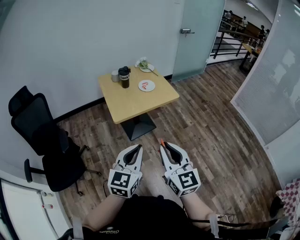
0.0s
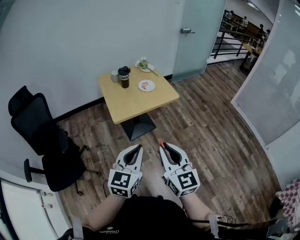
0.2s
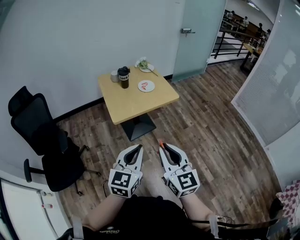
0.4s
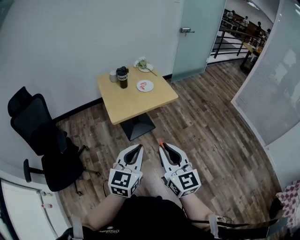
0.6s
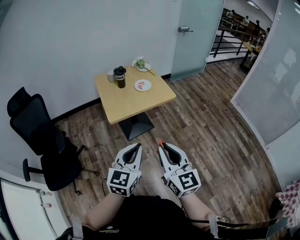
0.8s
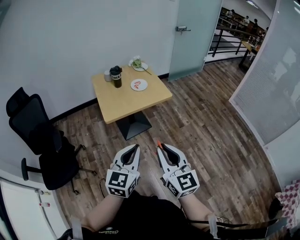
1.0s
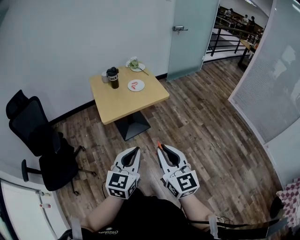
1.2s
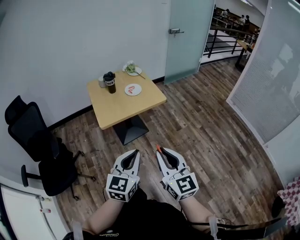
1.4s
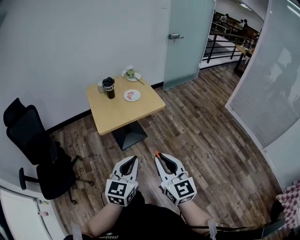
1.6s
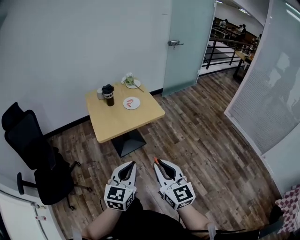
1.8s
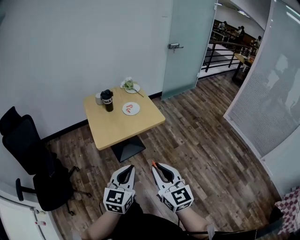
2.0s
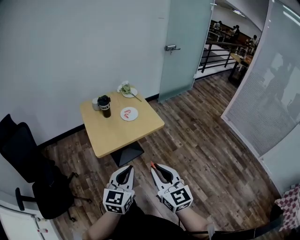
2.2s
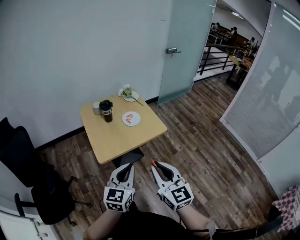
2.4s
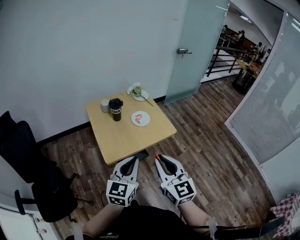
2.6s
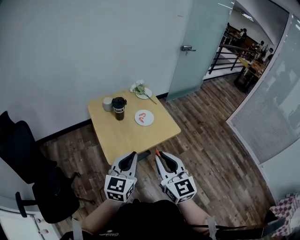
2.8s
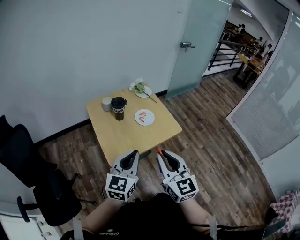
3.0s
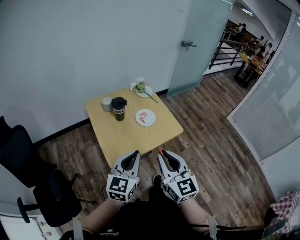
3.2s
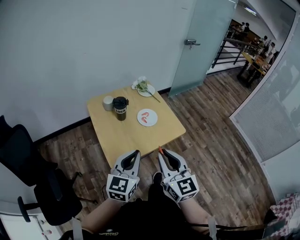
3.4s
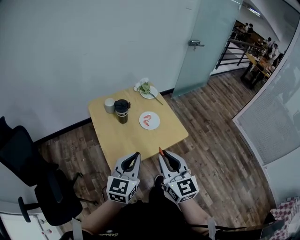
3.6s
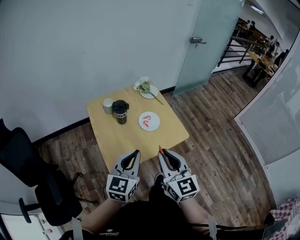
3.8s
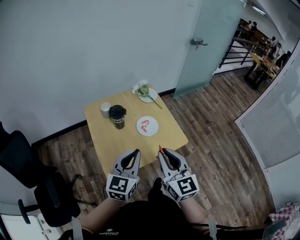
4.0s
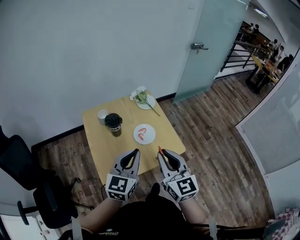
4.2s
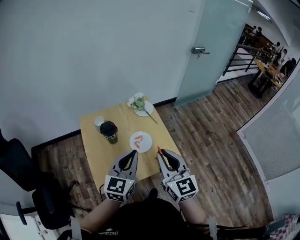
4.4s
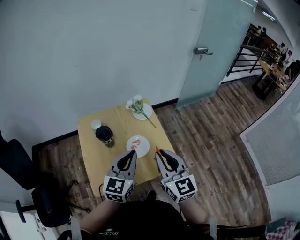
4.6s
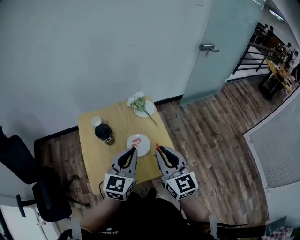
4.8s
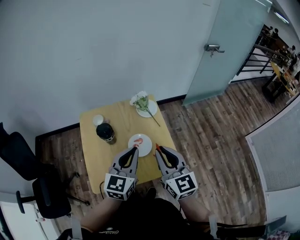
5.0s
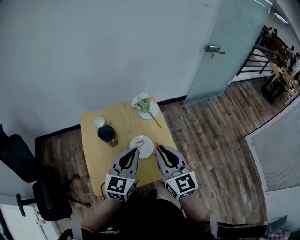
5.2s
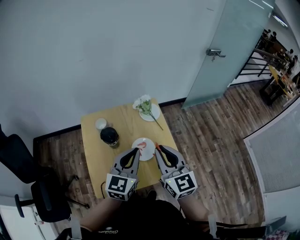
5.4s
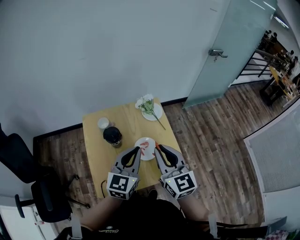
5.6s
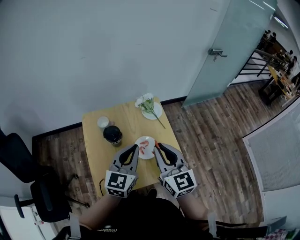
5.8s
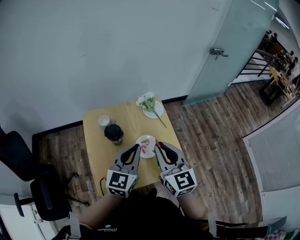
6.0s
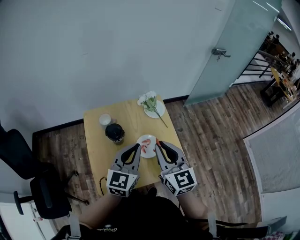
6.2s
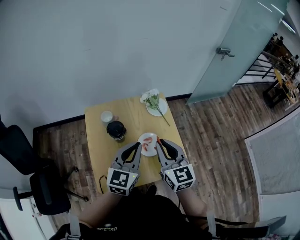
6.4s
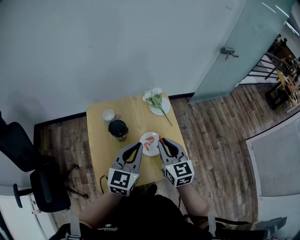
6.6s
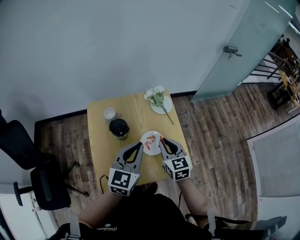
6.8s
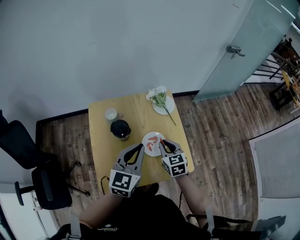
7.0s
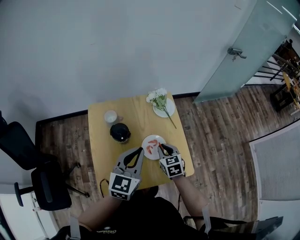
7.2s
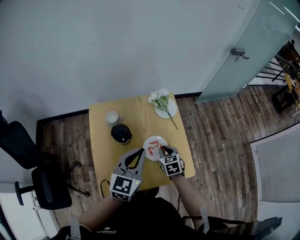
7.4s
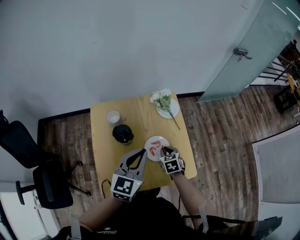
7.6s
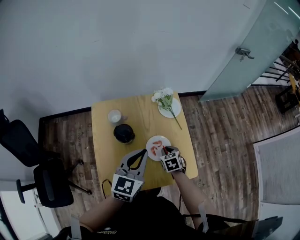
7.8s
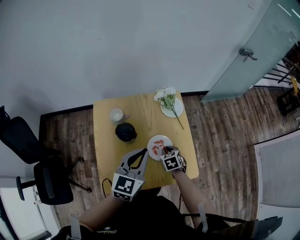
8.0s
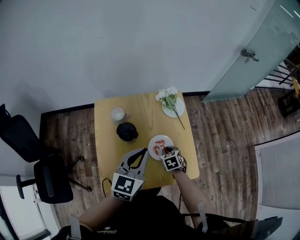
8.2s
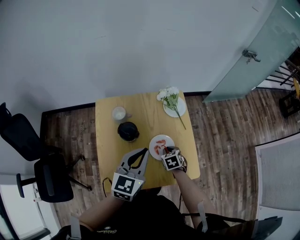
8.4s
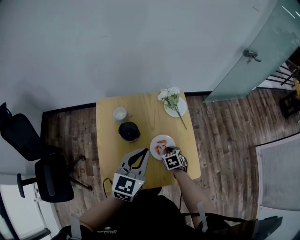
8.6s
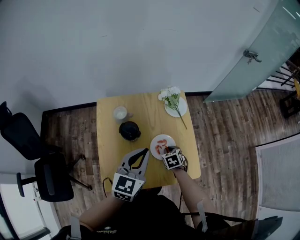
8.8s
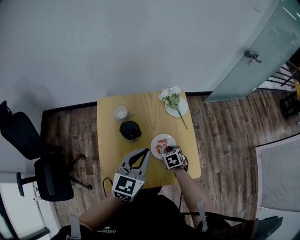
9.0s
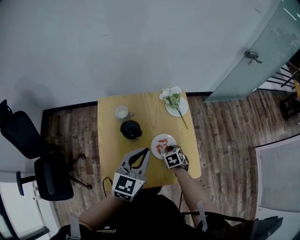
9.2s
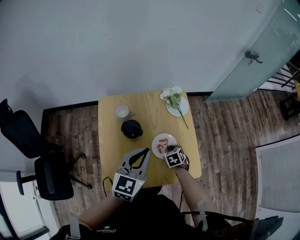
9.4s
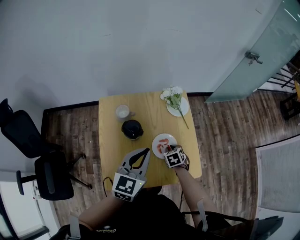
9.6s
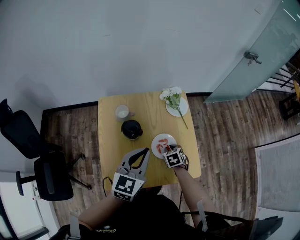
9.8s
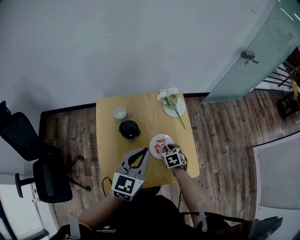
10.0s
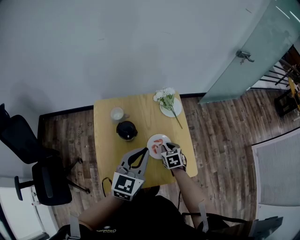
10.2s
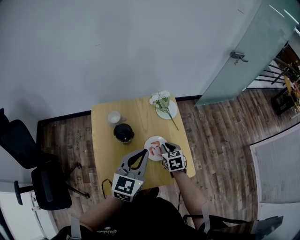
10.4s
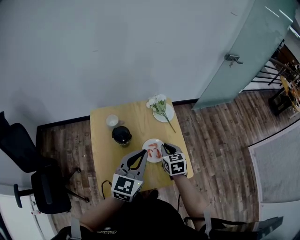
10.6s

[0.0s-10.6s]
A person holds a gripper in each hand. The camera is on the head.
0.0s to 1.6s: The two grippers go some 10 cm to the right.
1.6s to 3.0s: Both grippers travel together forward and to the left, some 30 cm.
3.0s to 4.6s: The grippers both shift forward by approximately 25 cm.
4.6s to 6.0s: The left gripper is displaced forward by approximately 5 cm. The right gripper travels forward and to the left by roughly 10 cm.
6.0s to 7.6s: The right gripper goes about 30 cm downward, and angles its fingers downward, by some 50 degrees. Meanwhile the left gripper changes place by roughly 5 cm.
7.6s to 9.0s: The right gripper heads downward, covering about 5 cm.
9.0s to 10.6s: The right gripper travels upward by some 15 cm, and swivels roughly 30 degrees.

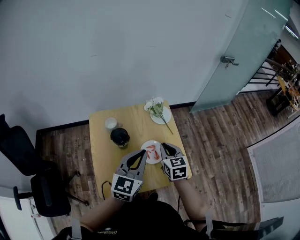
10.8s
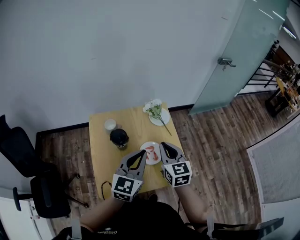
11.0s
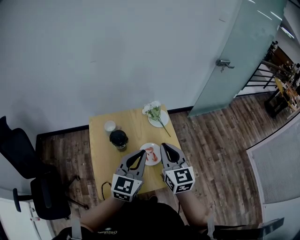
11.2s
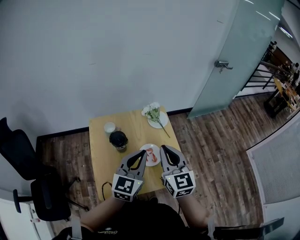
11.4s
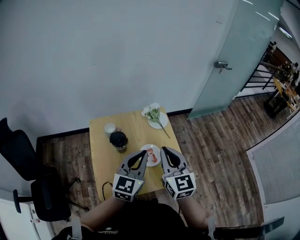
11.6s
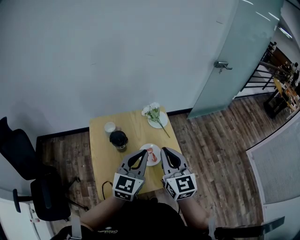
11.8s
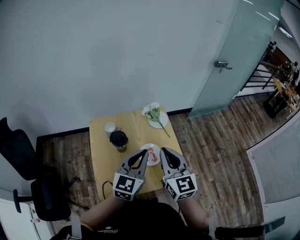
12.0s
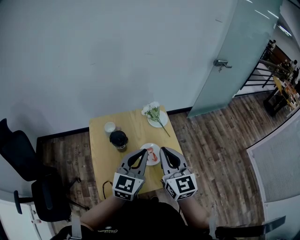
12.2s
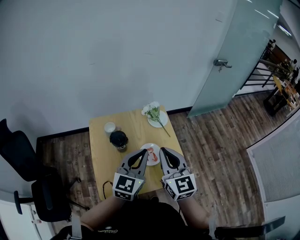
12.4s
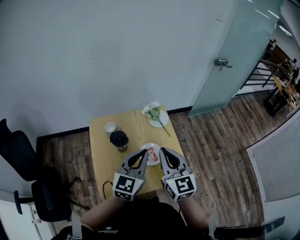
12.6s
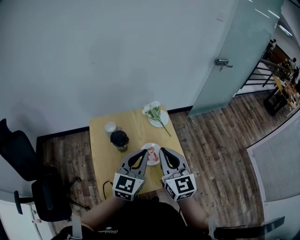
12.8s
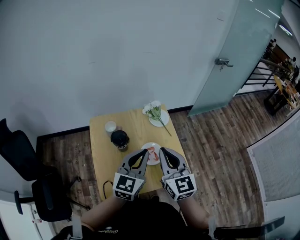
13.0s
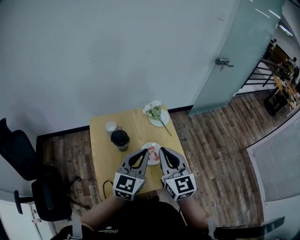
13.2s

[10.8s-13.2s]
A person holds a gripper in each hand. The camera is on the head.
10.8s to 12.0s: The right gripper moves upward and backward, some 15 cm, and swivels about 30 degrees.
12.0s to 13.2s: The grippers stay close to where they were, moving slightly.

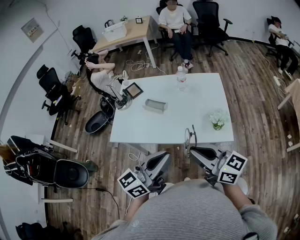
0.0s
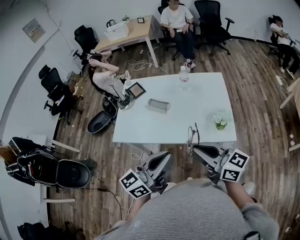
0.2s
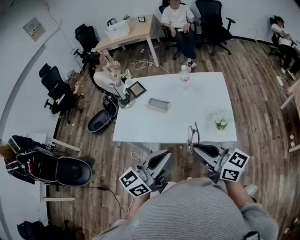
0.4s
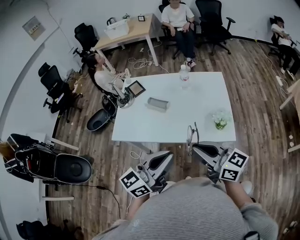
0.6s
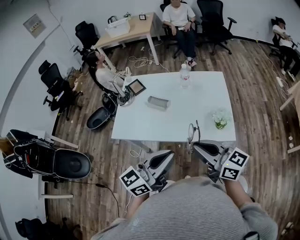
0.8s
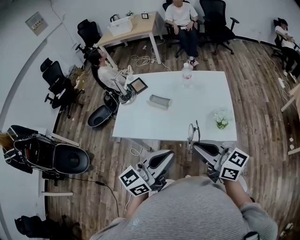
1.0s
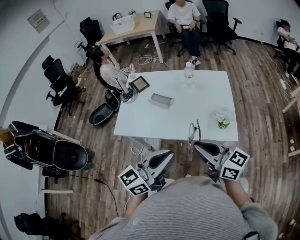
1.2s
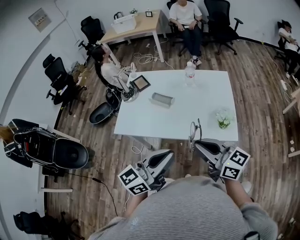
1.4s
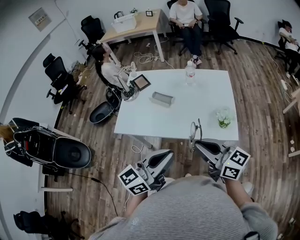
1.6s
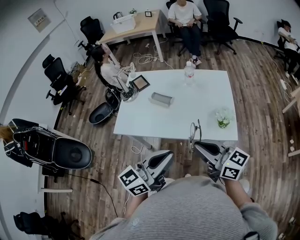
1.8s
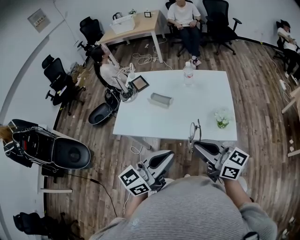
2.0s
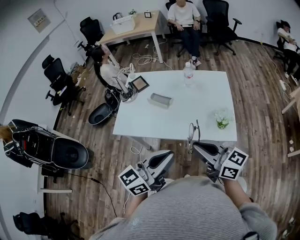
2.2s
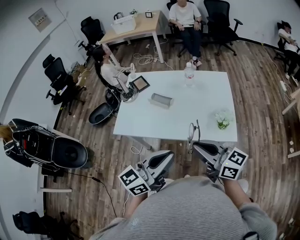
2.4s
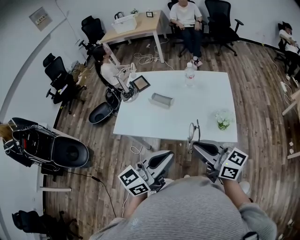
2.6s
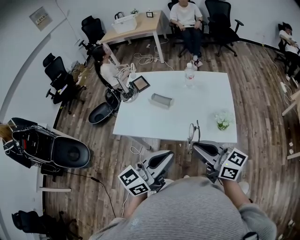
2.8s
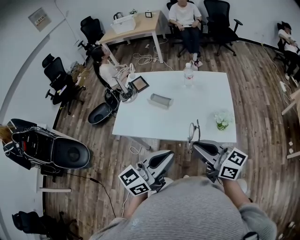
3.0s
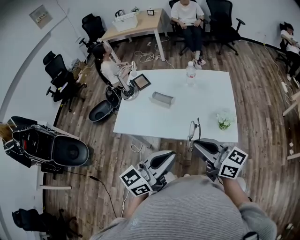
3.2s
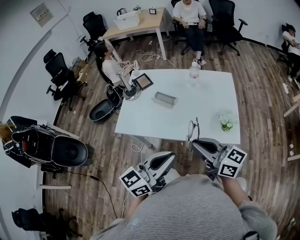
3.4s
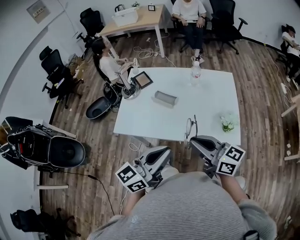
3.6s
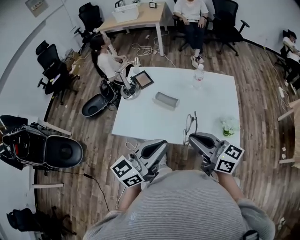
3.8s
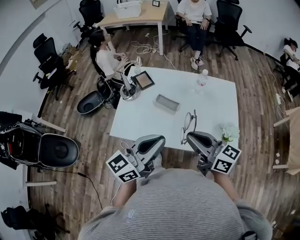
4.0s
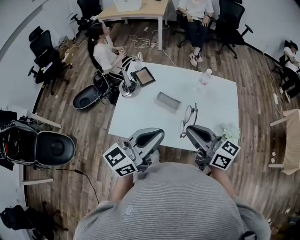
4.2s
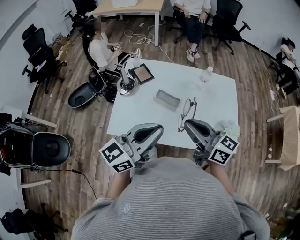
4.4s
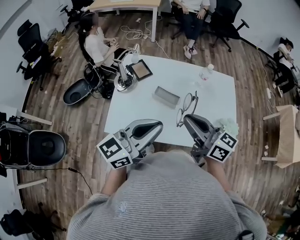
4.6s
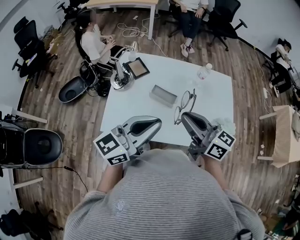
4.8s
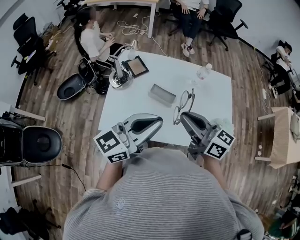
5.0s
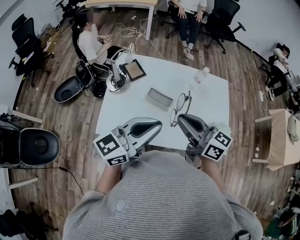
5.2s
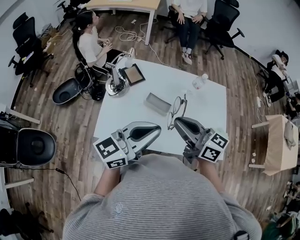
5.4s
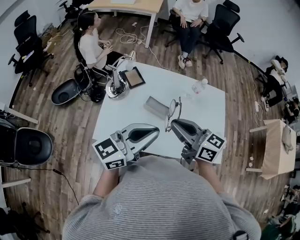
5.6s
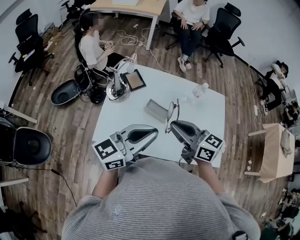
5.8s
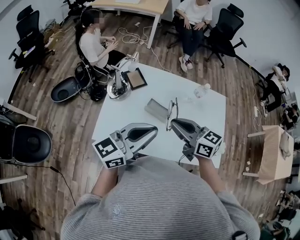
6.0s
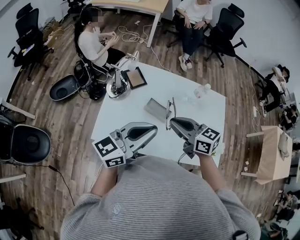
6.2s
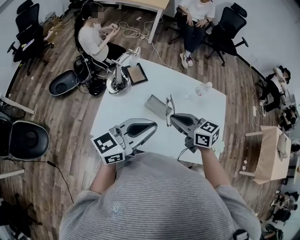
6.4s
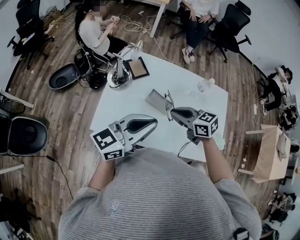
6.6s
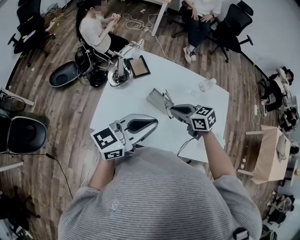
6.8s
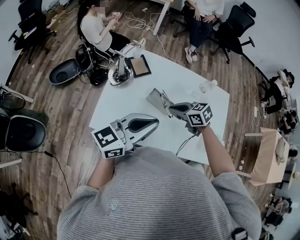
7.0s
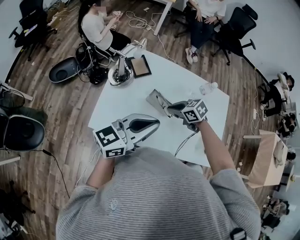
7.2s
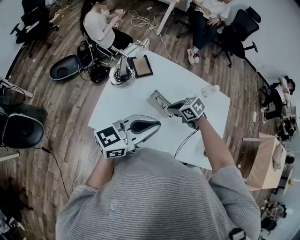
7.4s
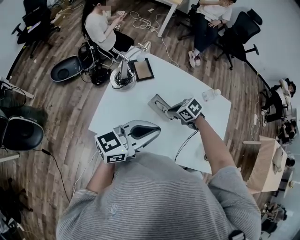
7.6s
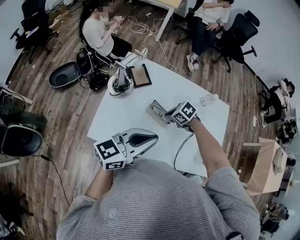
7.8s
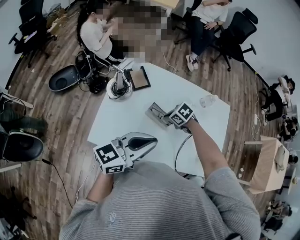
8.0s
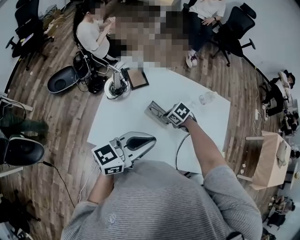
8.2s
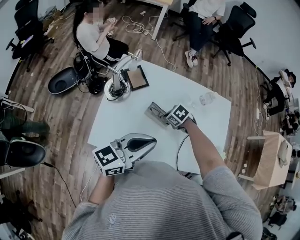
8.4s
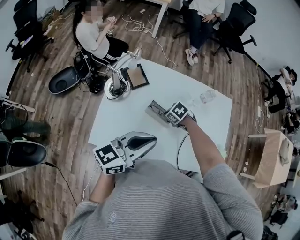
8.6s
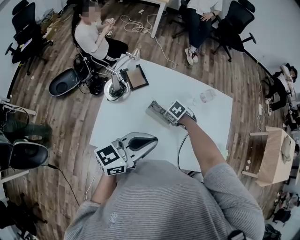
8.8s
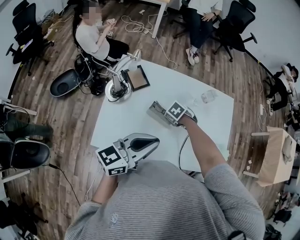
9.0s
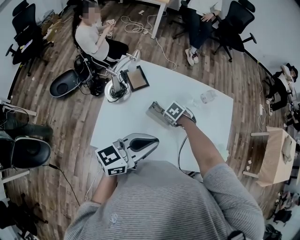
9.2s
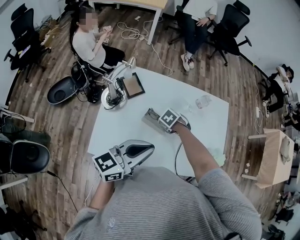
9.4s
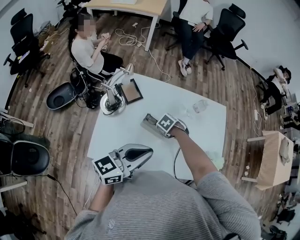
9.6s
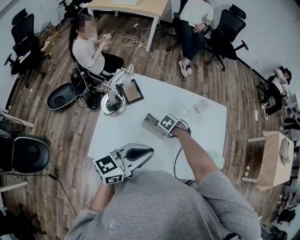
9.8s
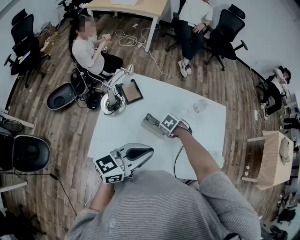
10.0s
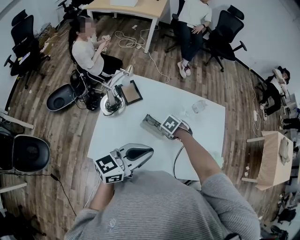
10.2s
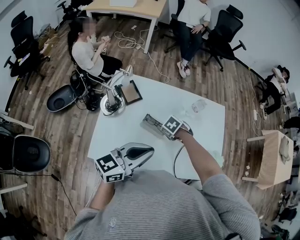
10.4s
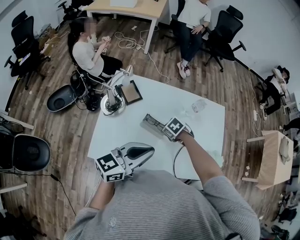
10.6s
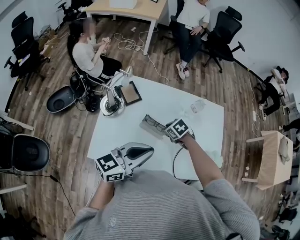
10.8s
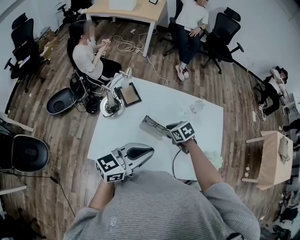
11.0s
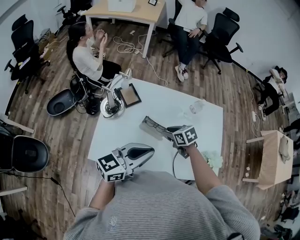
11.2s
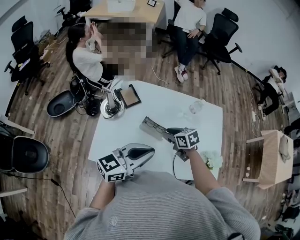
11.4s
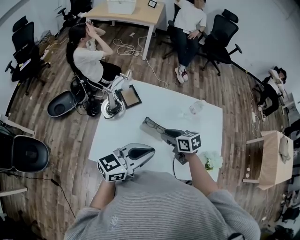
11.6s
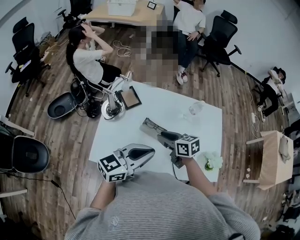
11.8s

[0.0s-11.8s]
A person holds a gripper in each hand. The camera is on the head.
0.0s to 3.0s: The grippers stay close to where they were, moving slightly.
3.0s to 4.4s: Both grippers move forward and to the left, roughly 25 cm.
4.4s to 6.0s: Both grippers move forward, about 5 cm.
6.0s to 7.4s: The right gripper is displaced downward by roughly 20 cm, and tips its fingers downward by roughly 40 degrees.
7.4s to 8.8s: The right gripper shifts some 10 cm downward.
8.8s to 10.4s: The right gripper opens up.
10.4s to 11.8s: The right gripper moves upward, some 15 cm, and tilts its fingers about 50 degrees upward.
